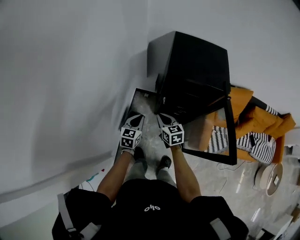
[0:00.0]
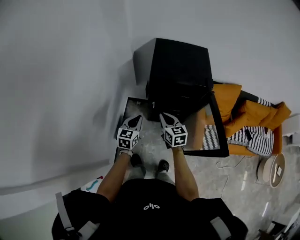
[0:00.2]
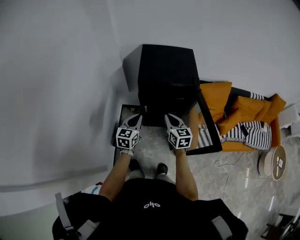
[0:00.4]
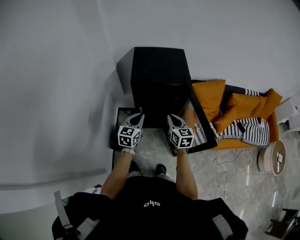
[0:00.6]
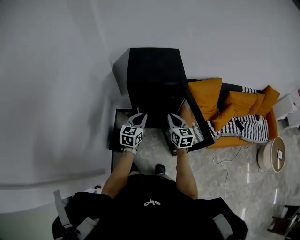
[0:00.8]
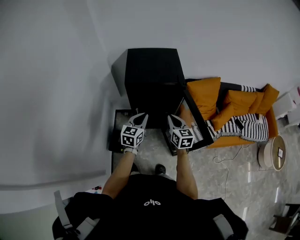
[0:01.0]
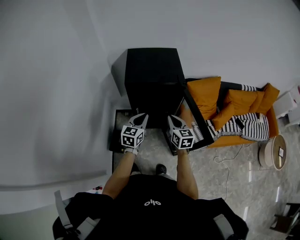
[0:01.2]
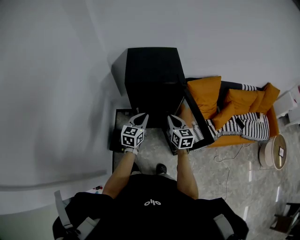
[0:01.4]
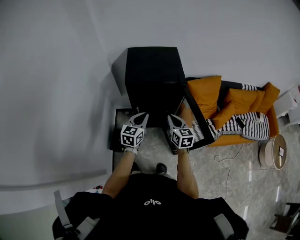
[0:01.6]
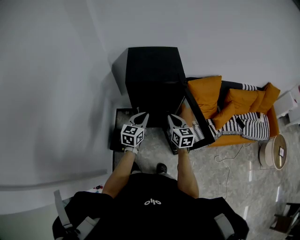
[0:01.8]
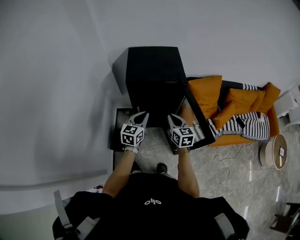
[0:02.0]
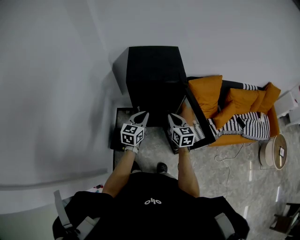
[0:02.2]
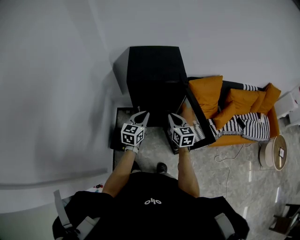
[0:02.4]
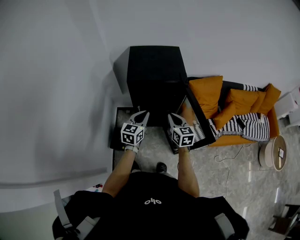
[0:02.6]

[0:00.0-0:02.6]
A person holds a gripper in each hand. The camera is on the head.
0:00.0 to 0:01.2: Both grippers move to the right and upward, roughly 25 cm. The right gripper changes its angle by roughly 30 degrees.
0:01.2 to 0:02.6: Neither gripper changes place.

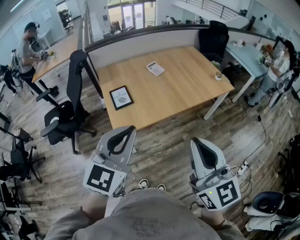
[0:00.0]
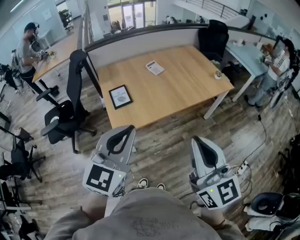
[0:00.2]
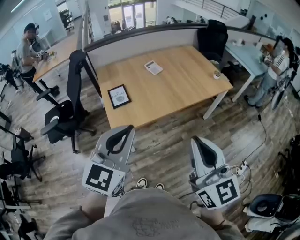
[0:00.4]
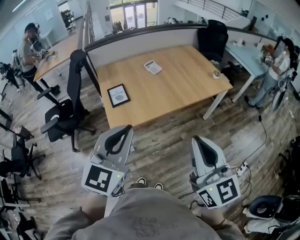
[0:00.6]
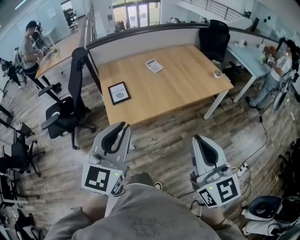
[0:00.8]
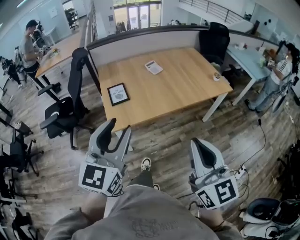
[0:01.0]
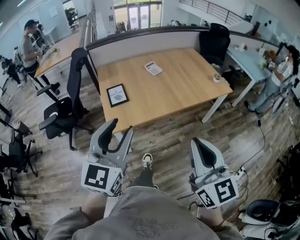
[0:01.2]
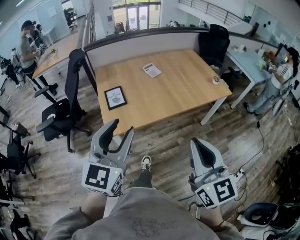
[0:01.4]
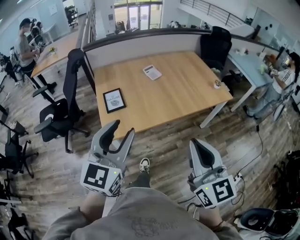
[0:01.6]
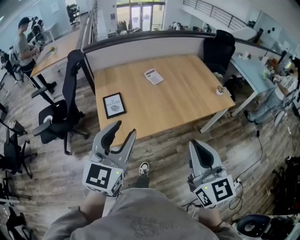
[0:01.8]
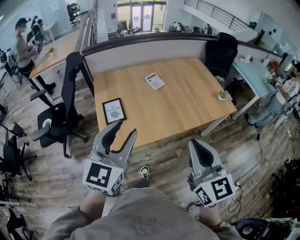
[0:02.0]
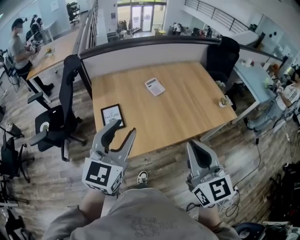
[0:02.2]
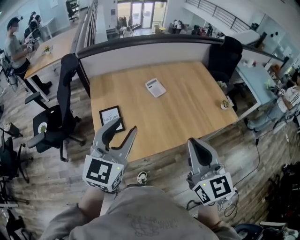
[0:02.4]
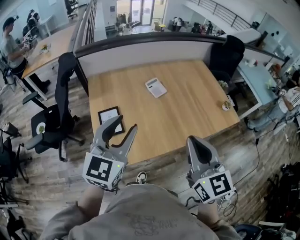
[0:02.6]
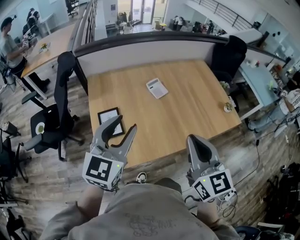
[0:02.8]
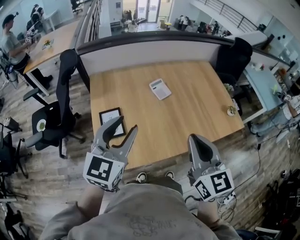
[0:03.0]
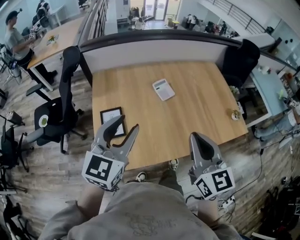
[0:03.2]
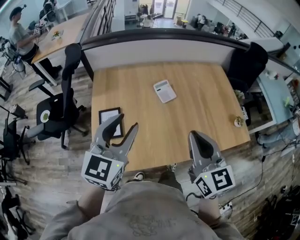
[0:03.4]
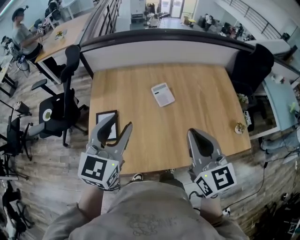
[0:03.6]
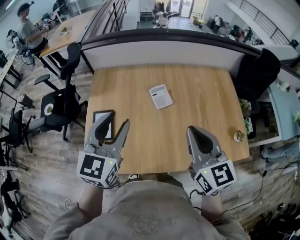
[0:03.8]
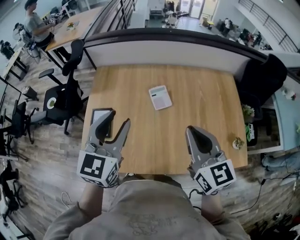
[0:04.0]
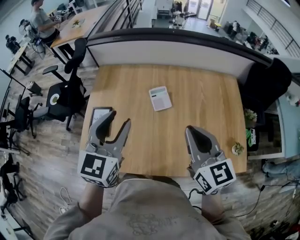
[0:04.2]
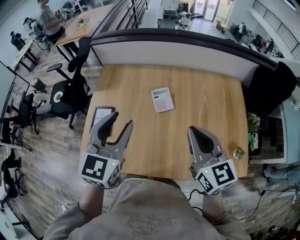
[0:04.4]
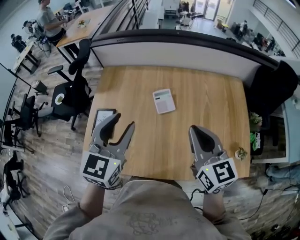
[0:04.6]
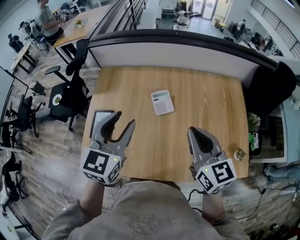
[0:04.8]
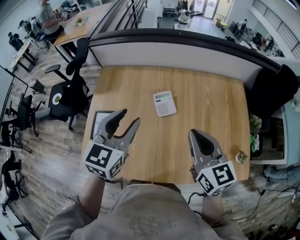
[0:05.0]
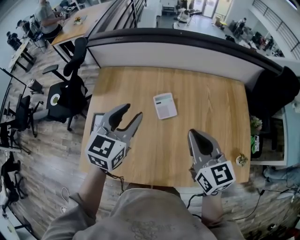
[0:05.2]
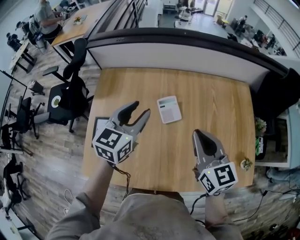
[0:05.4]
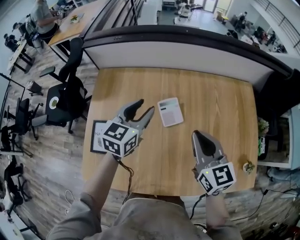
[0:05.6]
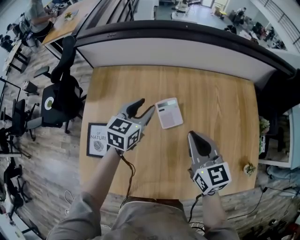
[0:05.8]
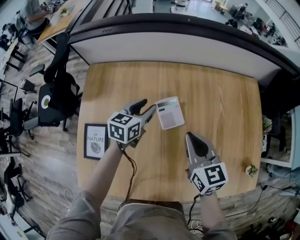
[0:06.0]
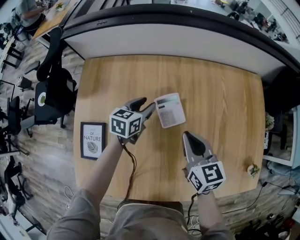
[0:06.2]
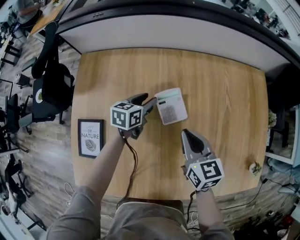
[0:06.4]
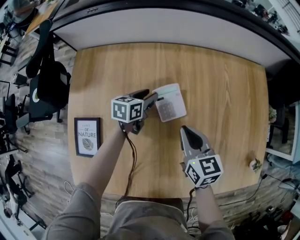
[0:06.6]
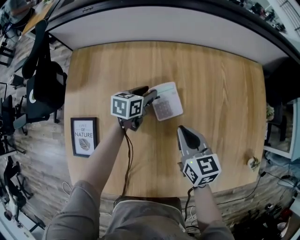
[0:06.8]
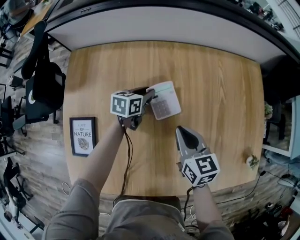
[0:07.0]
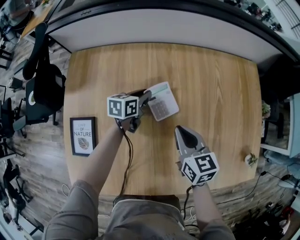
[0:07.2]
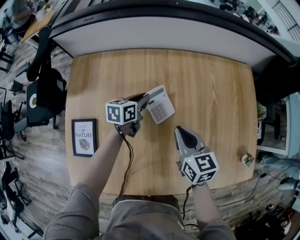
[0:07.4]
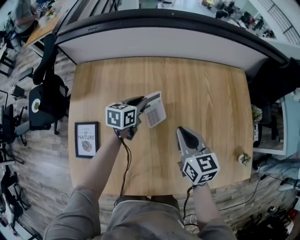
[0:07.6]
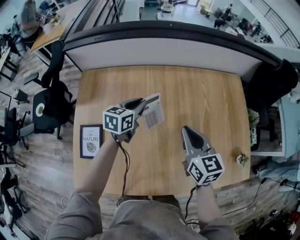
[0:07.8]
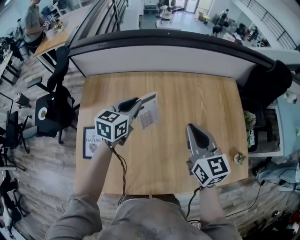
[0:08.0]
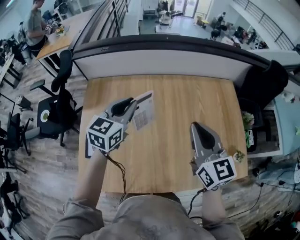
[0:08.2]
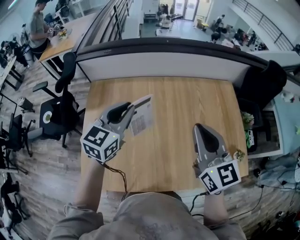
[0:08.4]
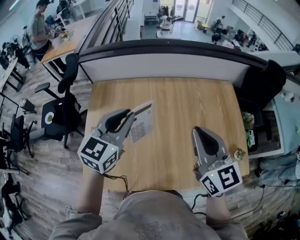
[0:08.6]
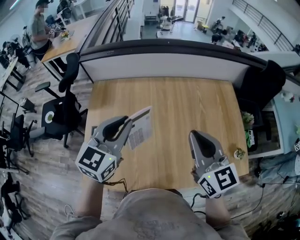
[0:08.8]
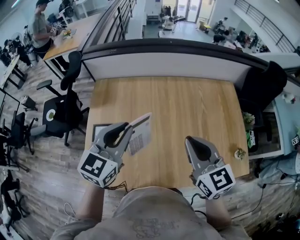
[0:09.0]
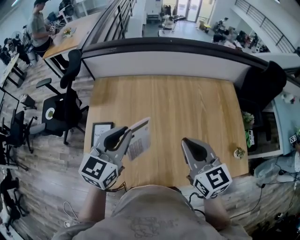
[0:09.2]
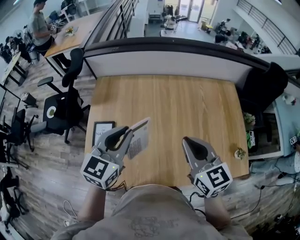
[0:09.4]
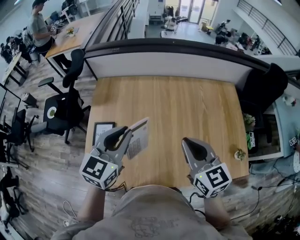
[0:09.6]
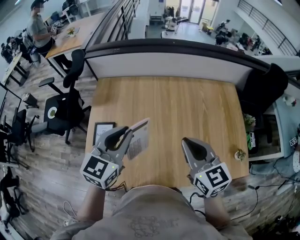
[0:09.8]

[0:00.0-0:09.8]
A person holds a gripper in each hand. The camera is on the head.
0:00.0 to 0:01.4: The left gripper opens. Meanwhile the right gripper heads to the right, covering some 5 cm.
0:01.4 to 0:02.8: Both grippers travel together forward, about 35 cm.
0:02.8 to 0:04.2: The left gripper changes place by roughly 20 cm, and turns by roughly 30 degrees; the right gripper ends up approximately 30 cm from where it was, and changes its angle by about 30 degrees.
0:04.2 to 0:05.6: The grippers both shift forward and downward by approximately 20 cm.
0:05.6 to 0:07.0: The two grippers go about 25 cm downward. The left gripper swivels roughly 30 degrees.
0:07.0 to 0:08.4: The left gripper is displaced upward and backward by about 40 cm, and rotates approximately 40 degrees. The right gripper shifts about 30 cm upward, and swivels roughly 30 degrees.
0:08.4 to 0:09.8: The right gripper shifts some 10 cm backward and downward. Meanwhile the left gripper is displaced backward by about 10 cm.

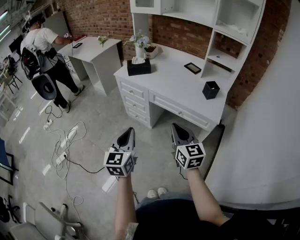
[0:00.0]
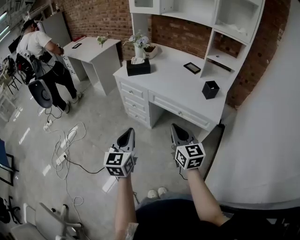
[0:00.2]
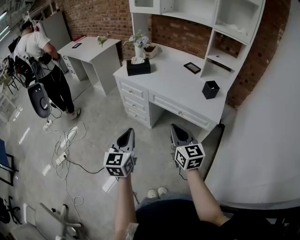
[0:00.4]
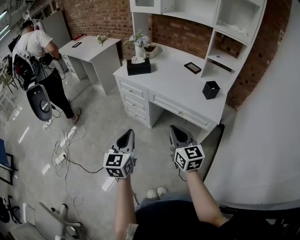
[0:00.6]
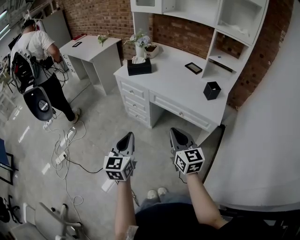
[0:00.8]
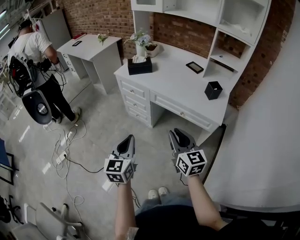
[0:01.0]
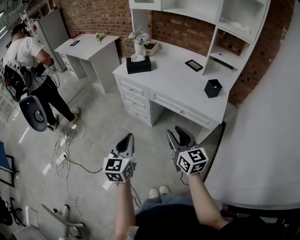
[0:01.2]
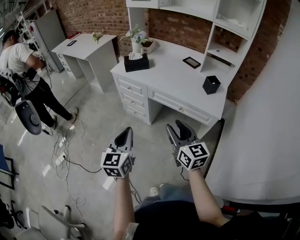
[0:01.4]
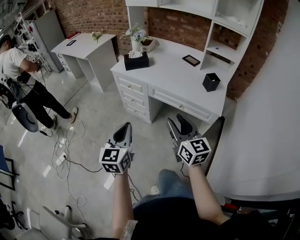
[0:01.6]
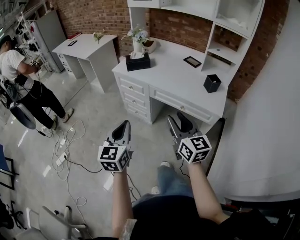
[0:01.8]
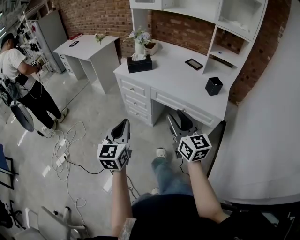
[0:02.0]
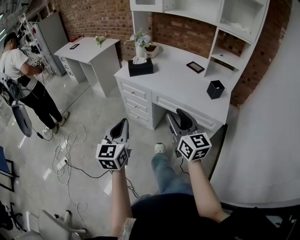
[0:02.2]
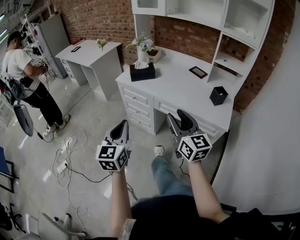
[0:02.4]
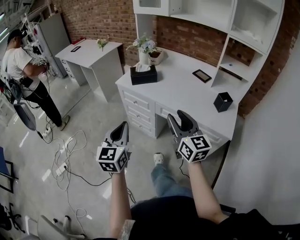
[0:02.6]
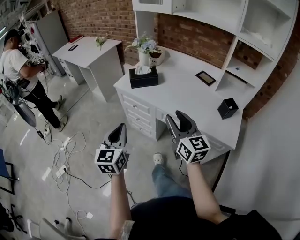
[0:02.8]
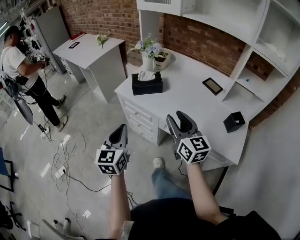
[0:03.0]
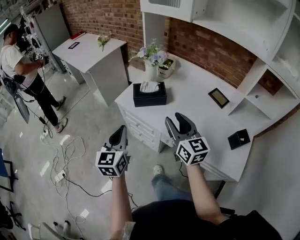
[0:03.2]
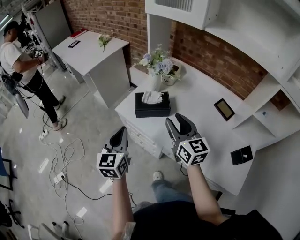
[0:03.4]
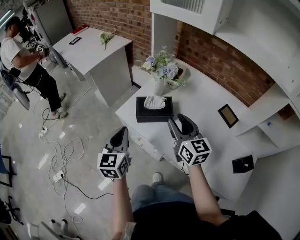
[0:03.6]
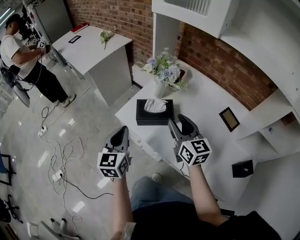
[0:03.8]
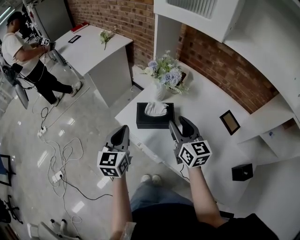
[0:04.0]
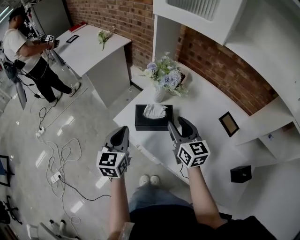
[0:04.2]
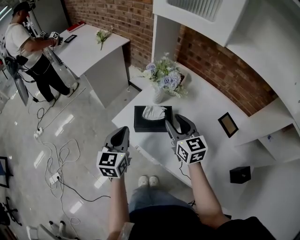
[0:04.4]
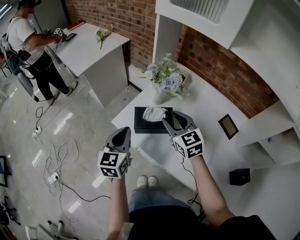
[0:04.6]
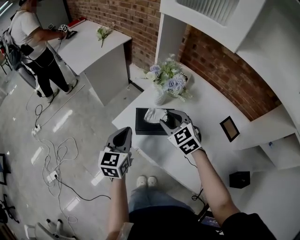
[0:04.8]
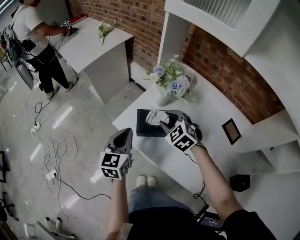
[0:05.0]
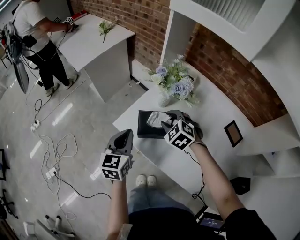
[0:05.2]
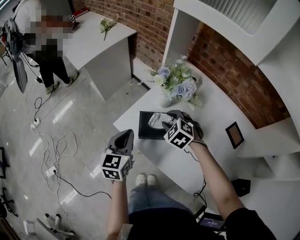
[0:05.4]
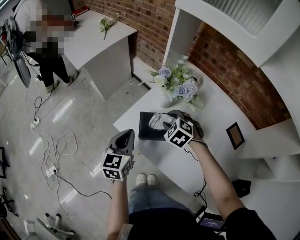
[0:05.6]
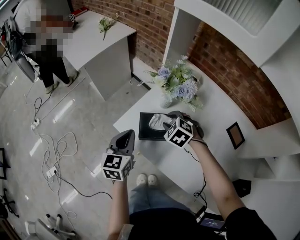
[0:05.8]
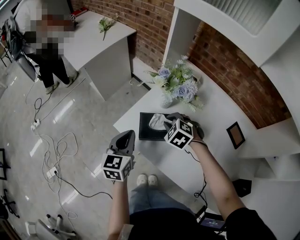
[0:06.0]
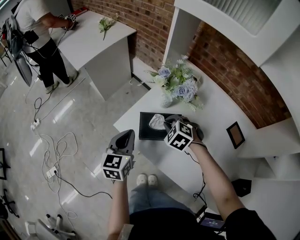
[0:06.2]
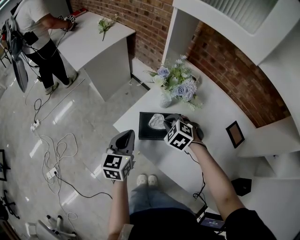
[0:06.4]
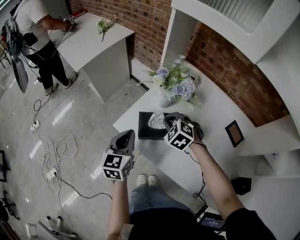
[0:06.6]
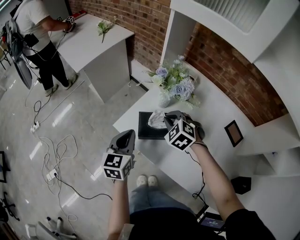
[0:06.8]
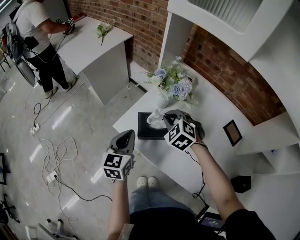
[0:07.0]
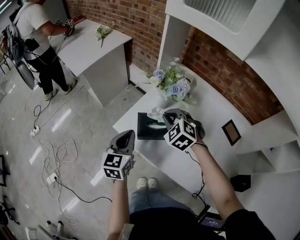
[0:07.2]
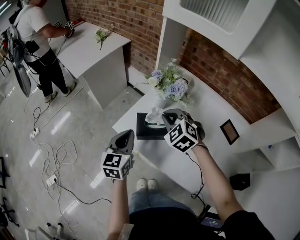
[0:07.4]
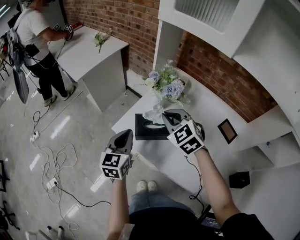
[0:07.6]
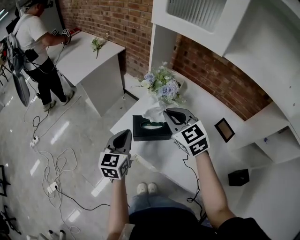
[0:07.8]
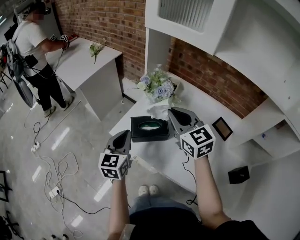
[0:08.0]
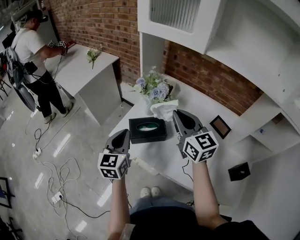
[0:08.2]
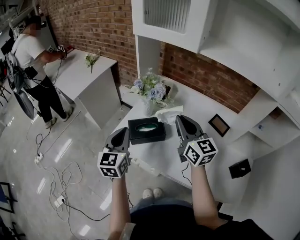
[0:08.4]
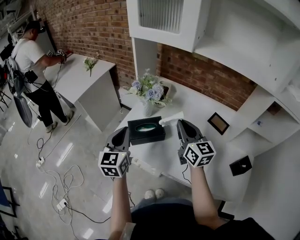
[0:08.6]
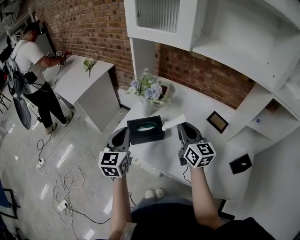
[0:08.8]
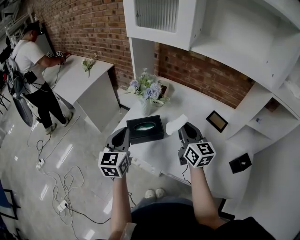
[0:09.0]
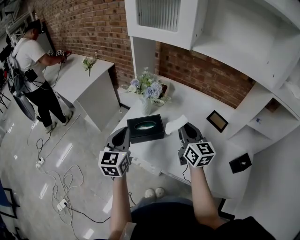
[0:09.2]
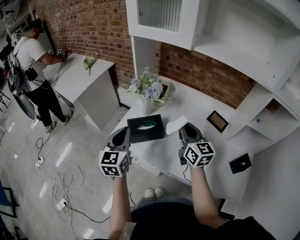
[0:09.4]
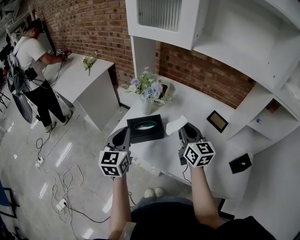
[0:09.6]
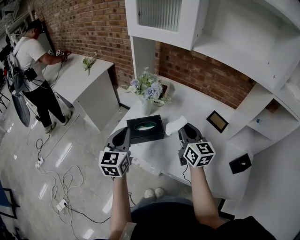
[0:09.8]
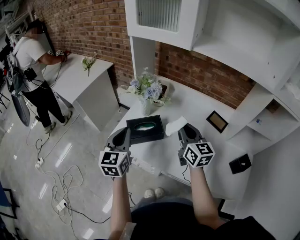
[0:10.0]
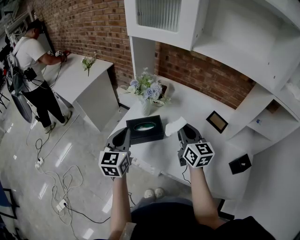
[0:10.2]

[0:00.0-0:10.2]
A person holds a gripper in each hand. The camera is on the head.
0:00.0 to 0:01.4: The right gripper opens up.
0:01.4 to 0:03.0: Both grippers travel together forward, about 30 cm.
0:03.0 to 0:04.4: Both grippers travel together forward, approximately 30 cm.
0:04.4 to 0:05.8: The right gripper shifts roughly 15 cm downward and forward, and tips its fingers downward by roughly 50 degrees. Meanwhile the left gripper shifts some 10 cm forward and downward.
0:05.8 to 0:07.2: The right gripper travels upward by roughly 10 cm, and closes its fingers.
0:07.2 to 0:08.8: The left gripper shifts about 10 cm upward, while the right gripper shifts roughly 20 cm to the right, backward and upward, and angles its fingers upward, by some 40 degrees.
0:08.8 to 0:10.2: Both grippers stay about where they are.

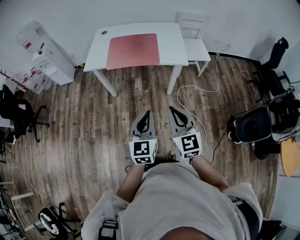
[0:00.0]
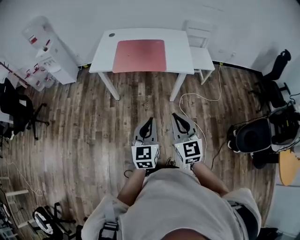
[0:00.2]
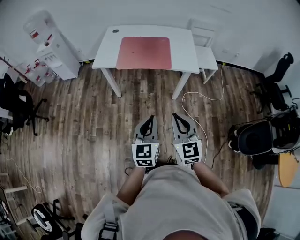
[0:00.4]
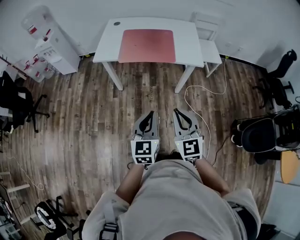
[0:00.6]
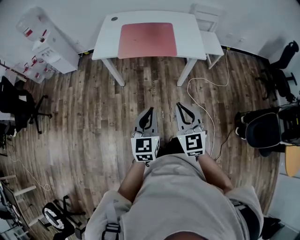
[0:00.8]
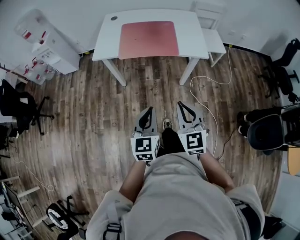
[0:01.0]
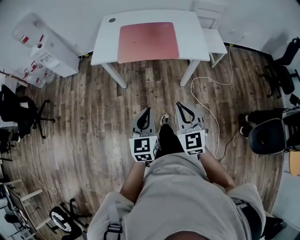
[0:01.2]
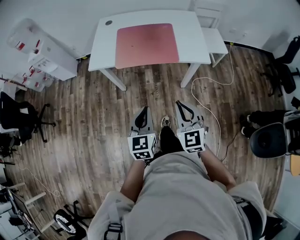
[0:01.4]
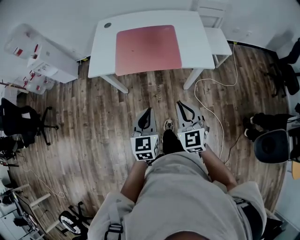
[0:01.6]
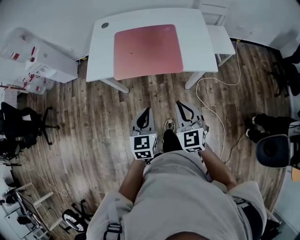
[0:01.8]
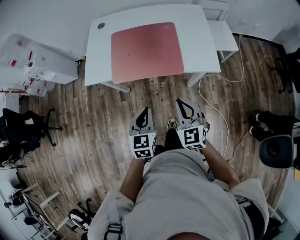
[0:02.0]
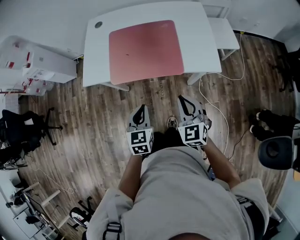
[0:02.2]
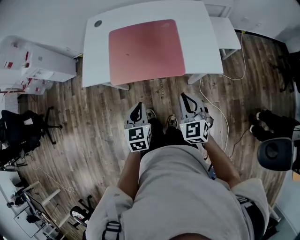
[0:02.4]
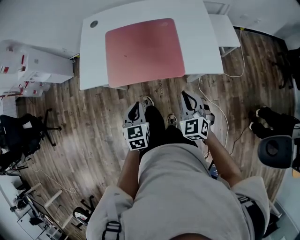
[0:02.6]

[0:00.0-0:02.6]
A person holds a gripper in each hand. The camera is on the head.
0:00.0 to 0:01.2: The two grippers go some 15 cm to the left, forward and downward.
0:01.2 to 0:02.6: Both grippers move forward and downward, approximately 30 cm. The left gripper turns by some 20 degrees.
